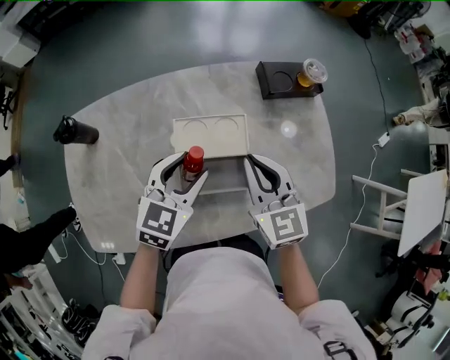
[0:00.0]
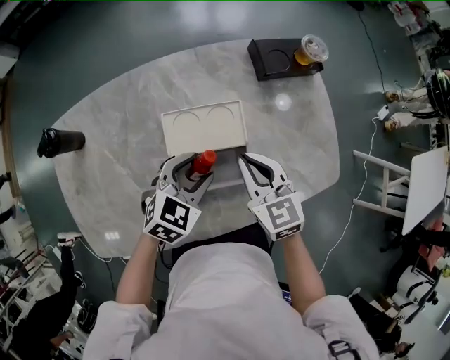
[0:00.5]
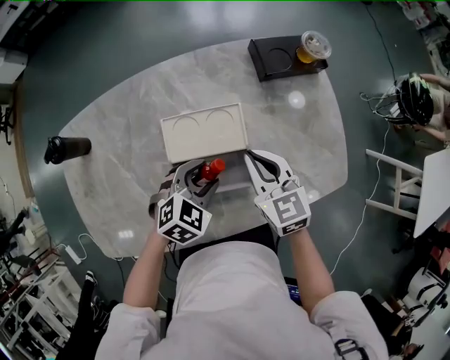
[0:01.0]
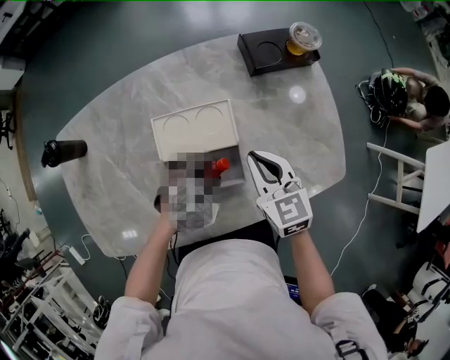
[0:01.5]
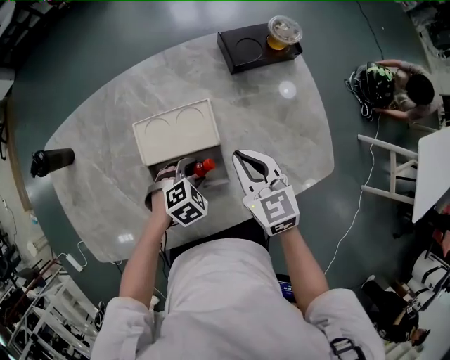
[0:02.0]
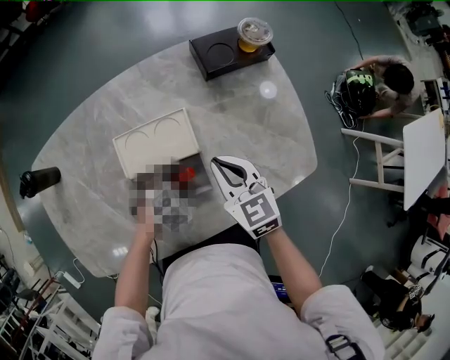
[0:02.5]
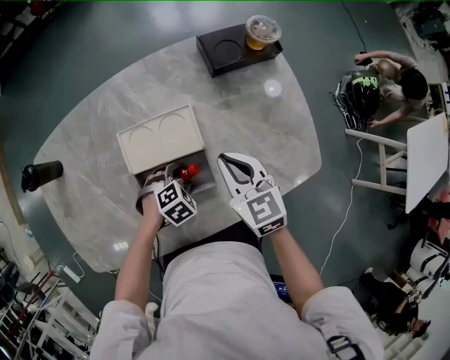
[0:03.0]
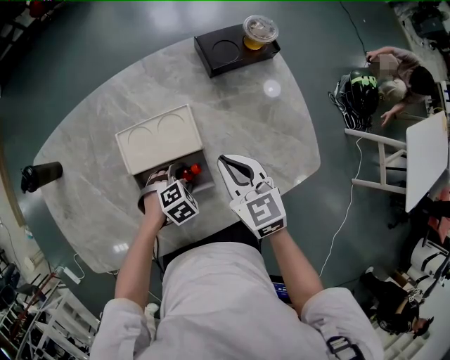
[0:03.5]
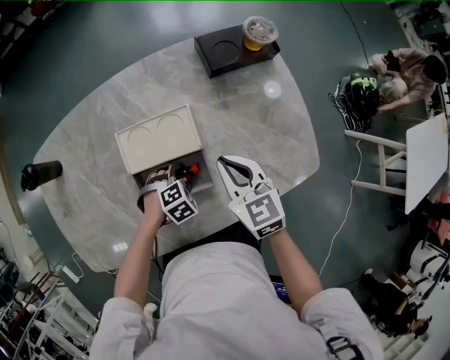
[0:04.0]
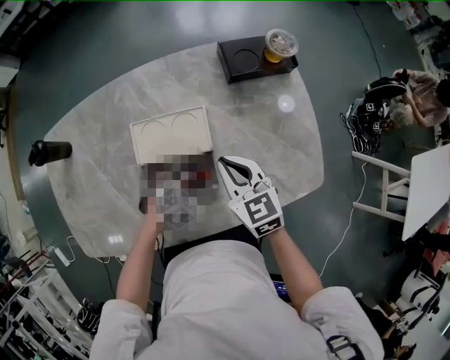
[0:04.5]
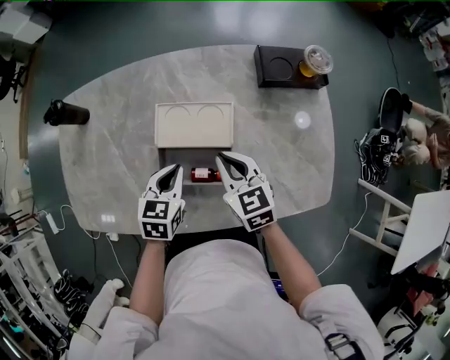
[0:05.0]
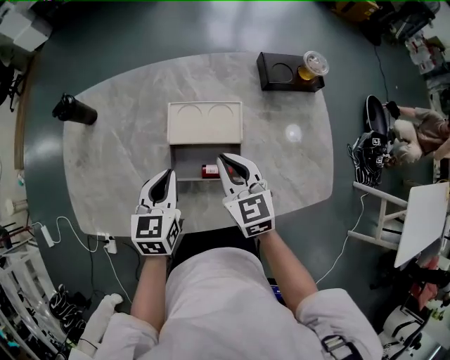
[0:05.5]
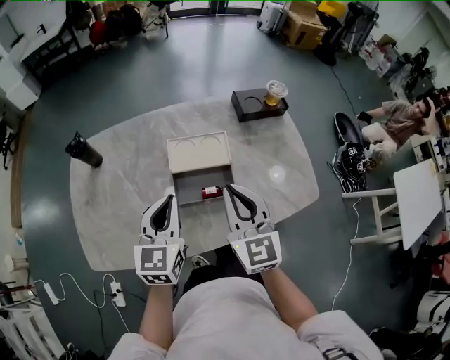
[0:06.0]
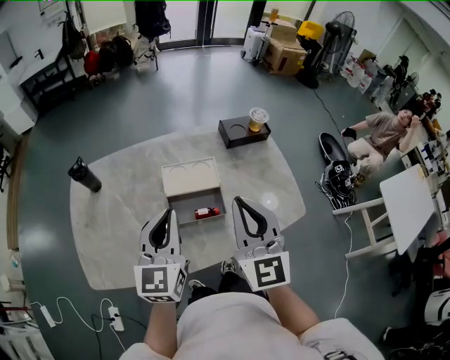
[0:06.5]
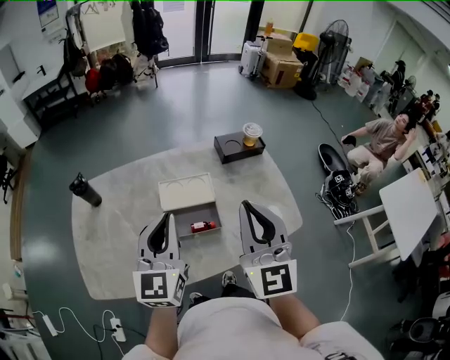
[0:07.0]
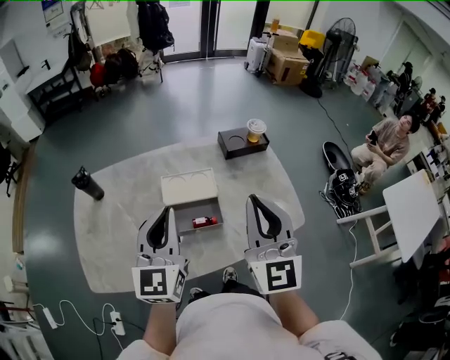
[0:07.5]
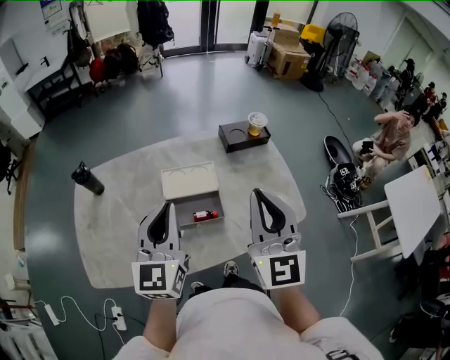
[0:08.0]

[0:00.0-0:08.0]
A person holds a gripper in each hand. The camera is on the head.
0:00.0 to 0:02.0: The left gripper shifts roughly 25 cm downward and to the right, and tilts its fingers about 40 degrees downward. Meanwhile the right gripper travels downward and to the right by some 15 cm.
0:02.0 to 0:04.0: The left gripper ends up approximately 5 cm from where it was.
0:04.0 to 0:06.0: The left gripper is displaced upward by roughly 35 cm, points its fingers some 60 degrees further upward, and closes its fingers. The right gripper moves upward, some 15 cm, and turns by some 30 degrees.
0:06.0 to 0:08.0: The two grippers go roughly 15 cm upward and to the right.

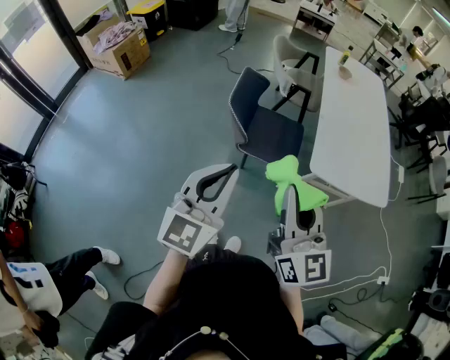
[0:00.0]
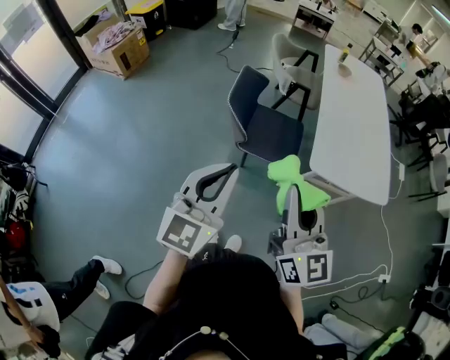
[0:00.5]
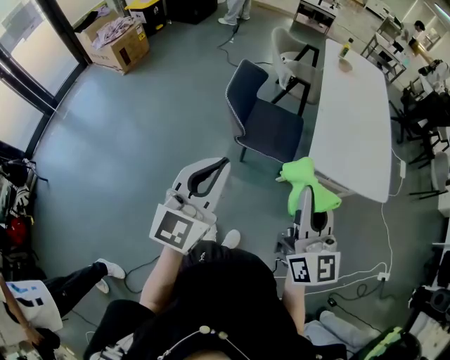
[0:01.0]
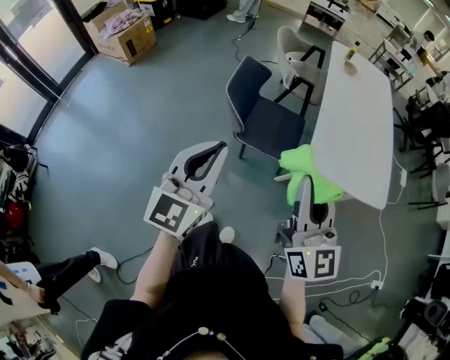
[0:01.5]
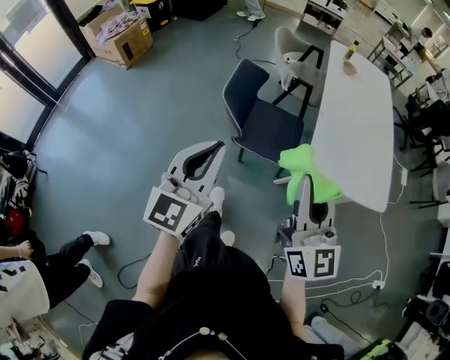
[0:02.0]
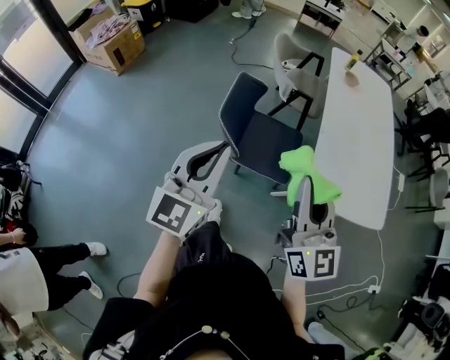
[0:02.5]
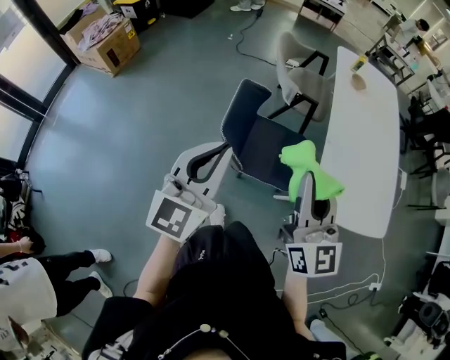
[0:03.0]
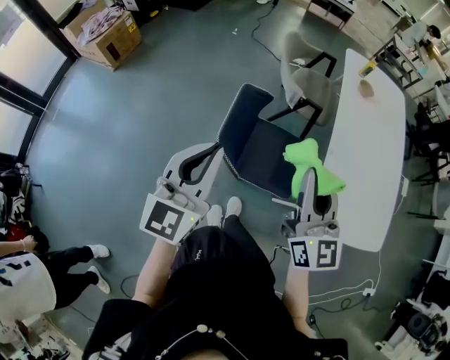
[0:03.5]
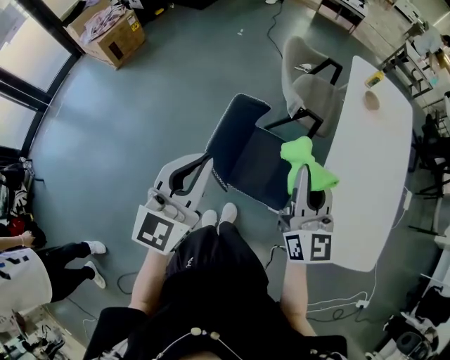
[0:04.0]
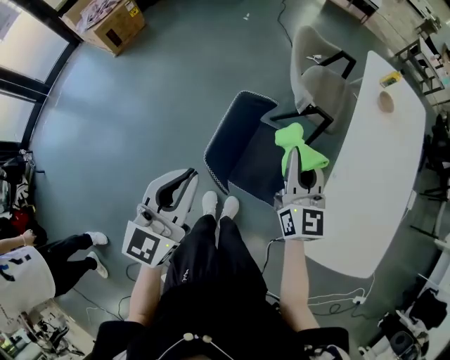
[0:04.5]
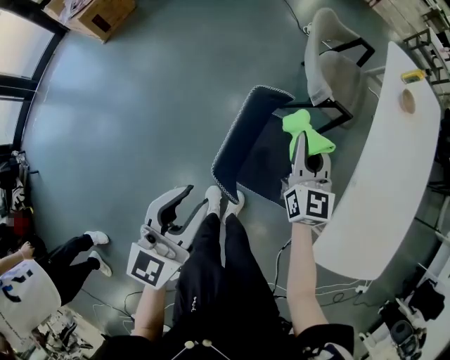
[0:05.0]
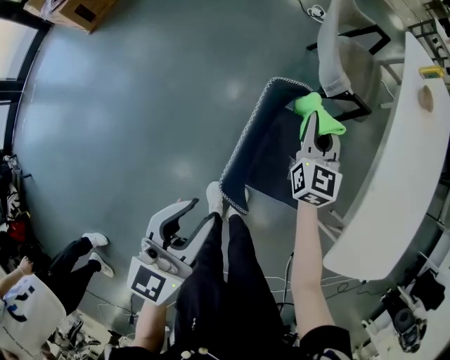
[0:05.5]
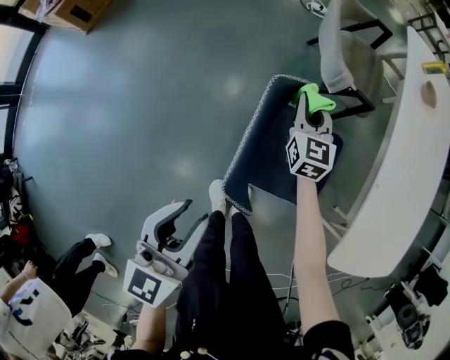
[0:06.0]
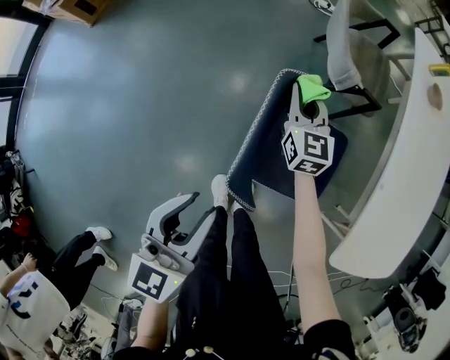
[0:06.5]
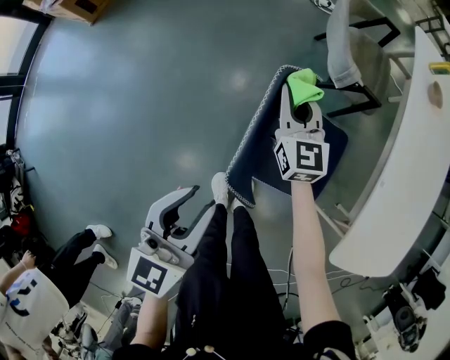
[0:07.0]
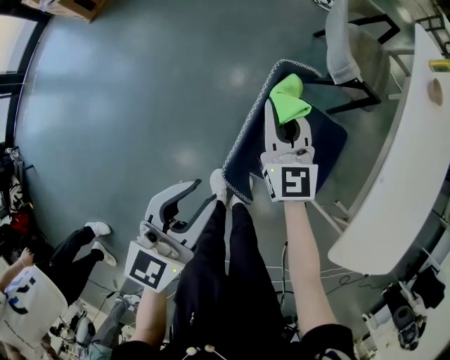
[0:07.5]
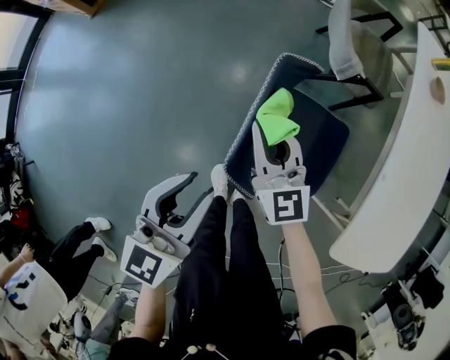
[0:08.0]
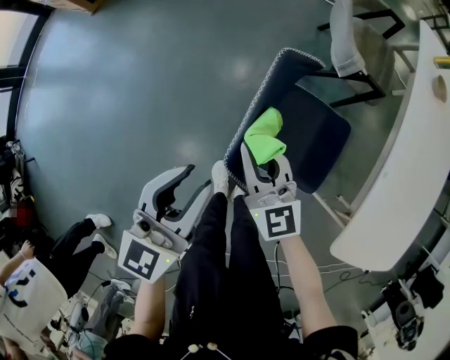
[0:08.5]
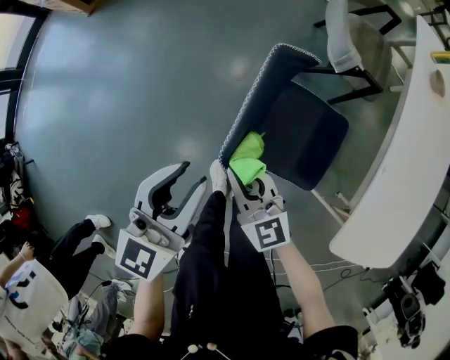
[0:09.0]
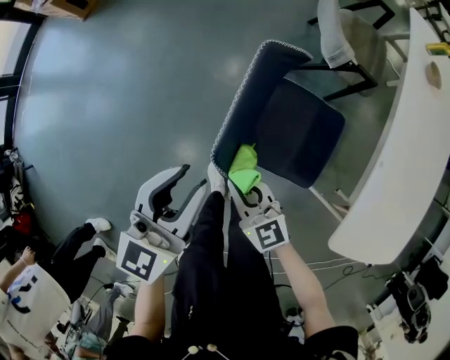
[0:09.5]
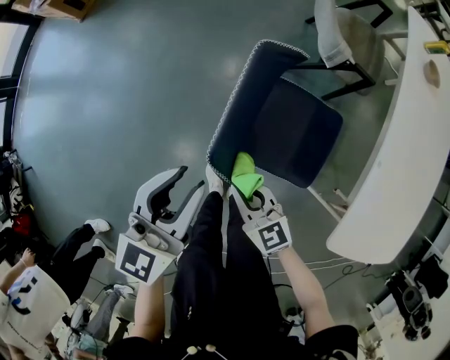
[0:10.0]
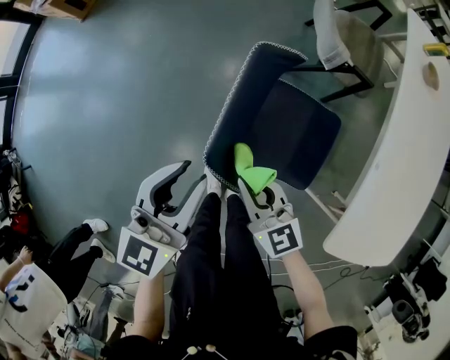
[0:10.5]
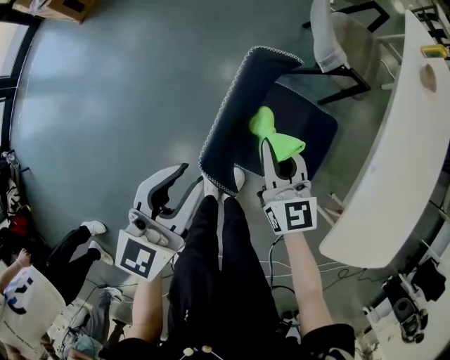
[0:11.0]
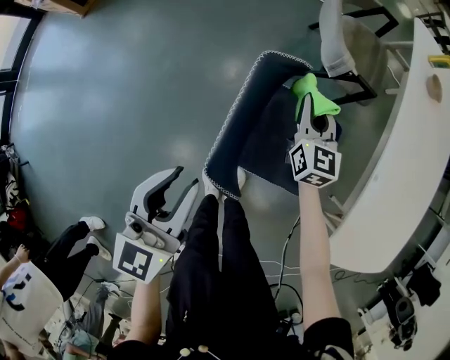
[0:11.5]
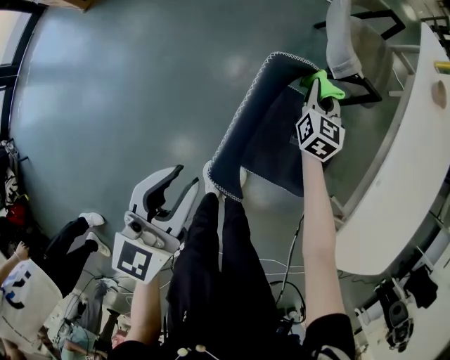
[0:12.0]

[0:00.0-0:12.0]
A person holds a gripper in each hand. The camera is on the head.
0:00.0 to 0:02.0: The right gripper goes approximately 5 cm to the right.
0:02.0 to 0:04.0: Both grippers move forward, roughly 35 cm.
0:04.0 to 0:06.0: The right gripper travels downward and forward by some 40 cm, and turns by roughly 30 degrees, while the left gripper moves downward and to the left, some 25 cm, and opens up.
0:06.0 to 0:08.0: The right gripper travels backward, to the left and upward by about 20 cm, and rotates approximately 30 degrees.
0:08.0 to 0:10.0: The right gripper is displaced backward and downward by approximately 20 cm, and swivels approximately 30 degrees.
0:10.0 to 0:12.0: The right gripper heads forward and to the right, covering about 35 cm, and changes its angle by approximately 50 degrees.

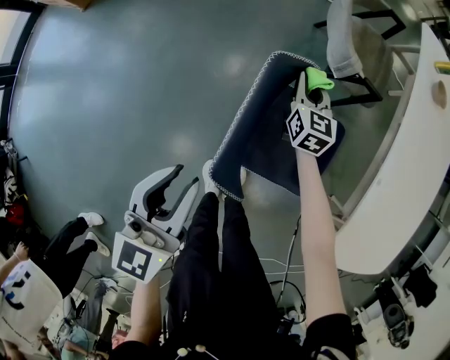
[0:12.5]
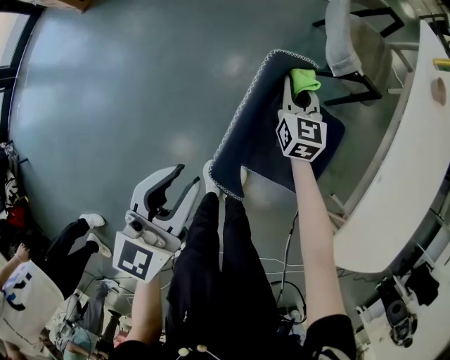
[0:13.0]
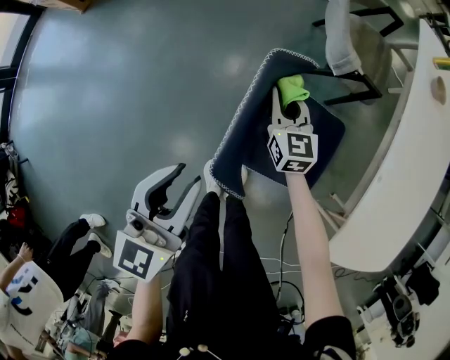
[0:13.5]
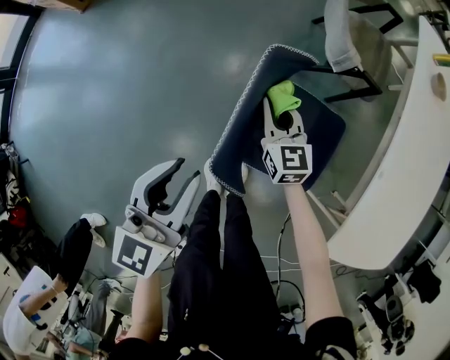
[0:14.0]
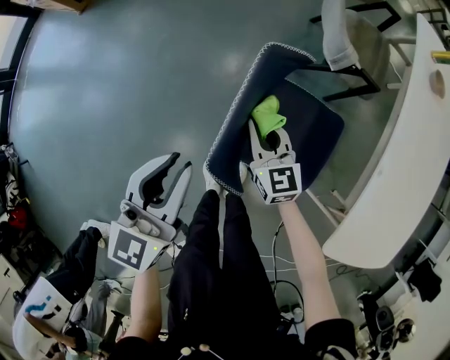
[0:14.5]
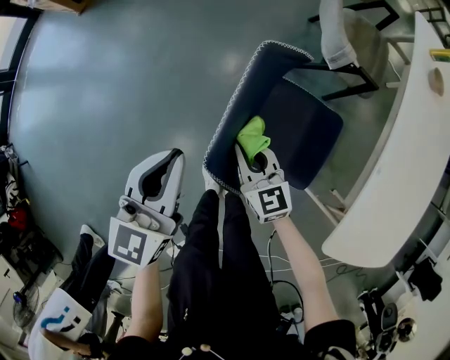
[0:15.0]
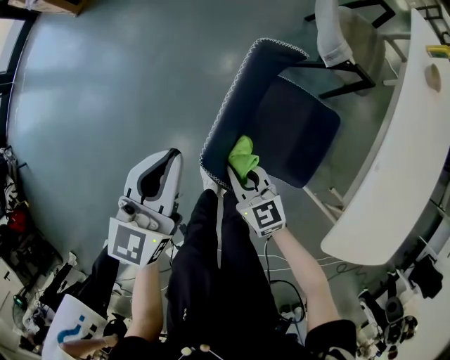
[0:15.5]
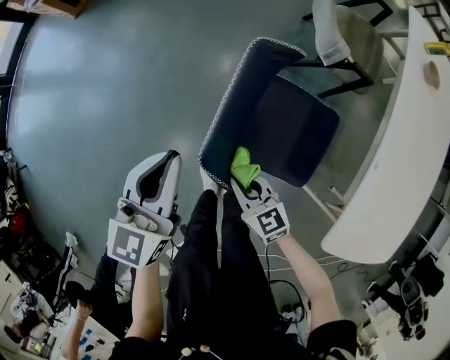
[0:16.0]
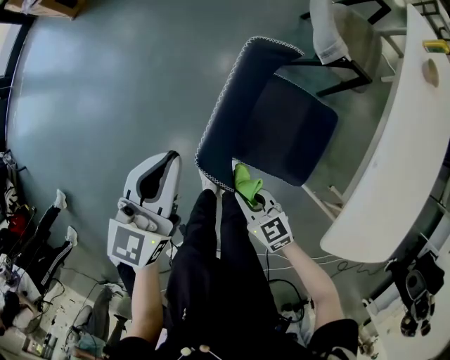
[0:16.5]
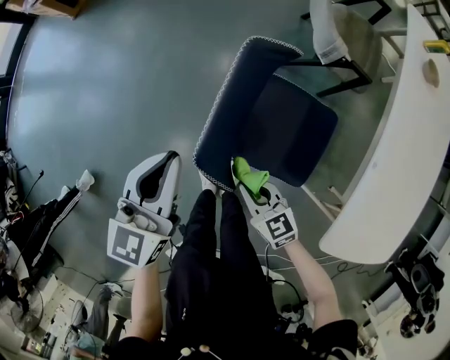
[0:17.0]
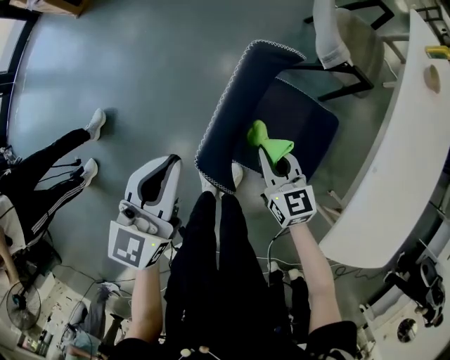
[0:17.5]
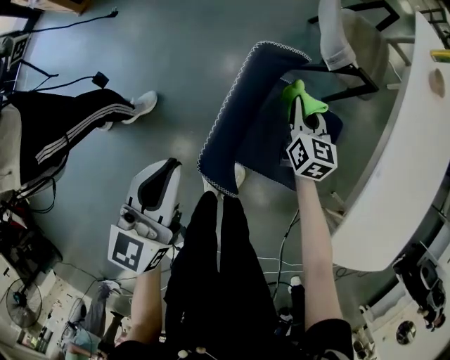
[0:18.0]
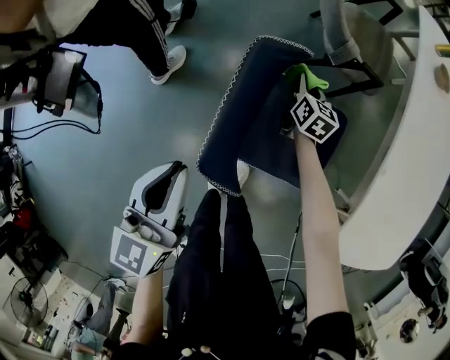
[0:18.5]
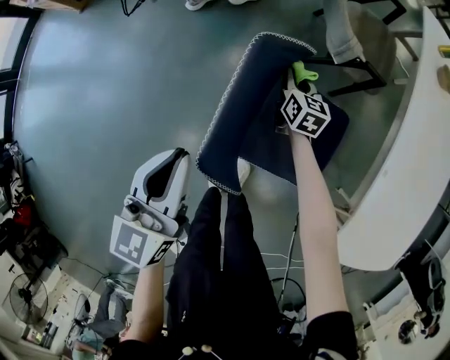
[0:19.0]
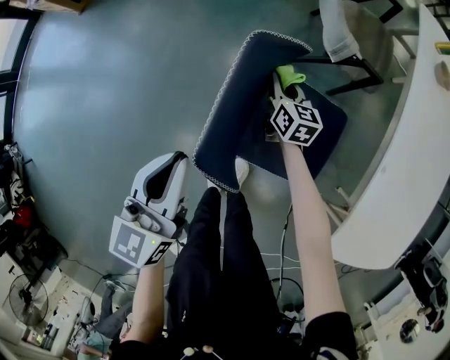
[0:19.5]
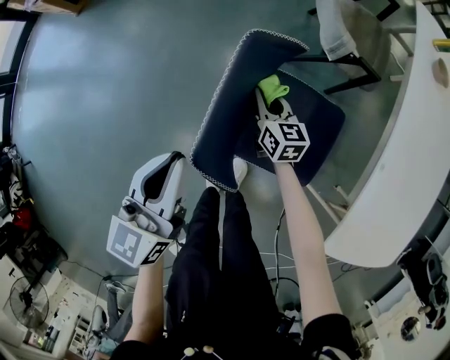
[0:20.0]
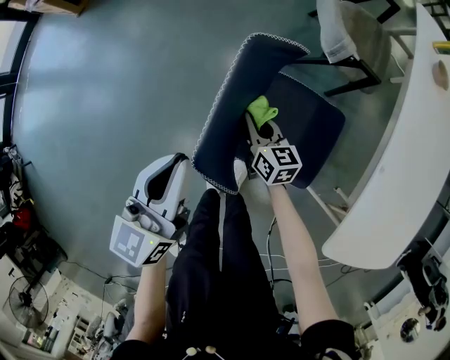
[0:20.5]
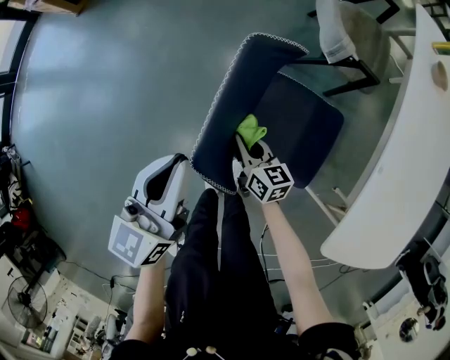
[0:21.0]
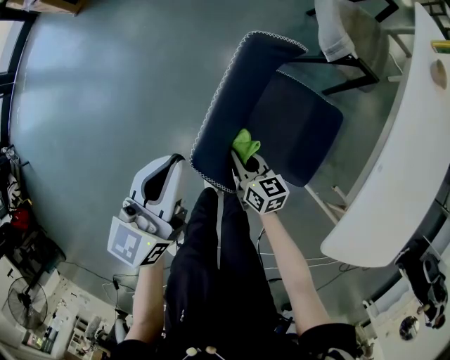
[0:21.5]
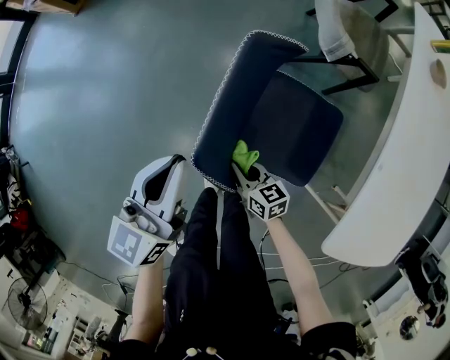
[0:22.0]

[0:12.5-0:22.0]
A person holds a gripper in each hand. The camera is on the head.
0:12.5 to 0:14.5: The right gripper heads backward and to the left, covering about 20 cm, and swivels roughly 20 degrees.
0:14.5 to 0:16.5: The right gripper is displaced backward by approximately 20 cm, and turns by about 30 degrees.
0:16.5 to 0:18.0: The right gripper travels forward and to the right by some 30 cm, and changes its angle by some 40 degrees.
0:18.0 to 0:20.0: The right gripper shifts approximately 10 cm to the left and downward.
0:20.0 to 0:22.0: The right gripper shifts roughly 20 cm backward, and swivels some 20 degrees.
